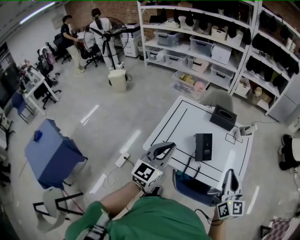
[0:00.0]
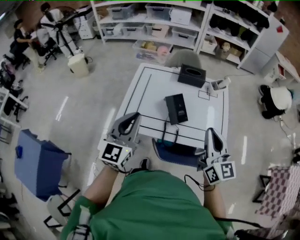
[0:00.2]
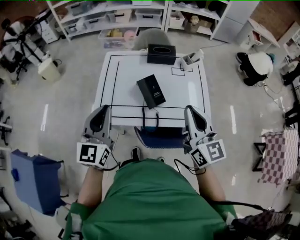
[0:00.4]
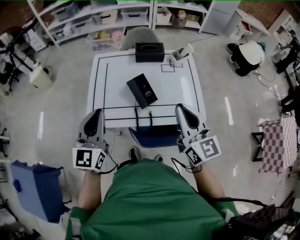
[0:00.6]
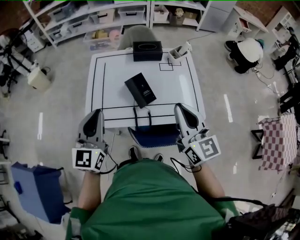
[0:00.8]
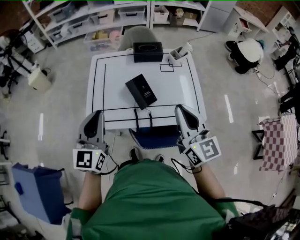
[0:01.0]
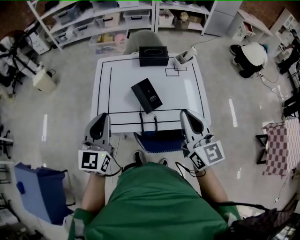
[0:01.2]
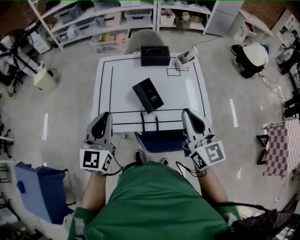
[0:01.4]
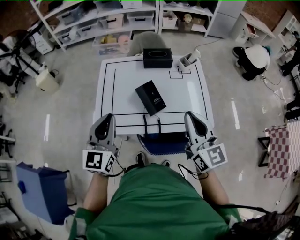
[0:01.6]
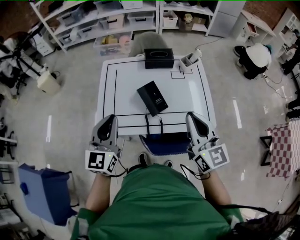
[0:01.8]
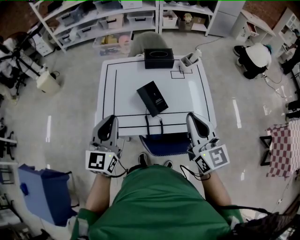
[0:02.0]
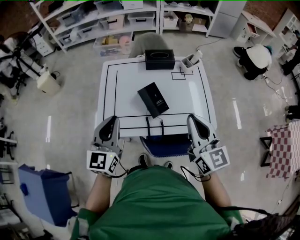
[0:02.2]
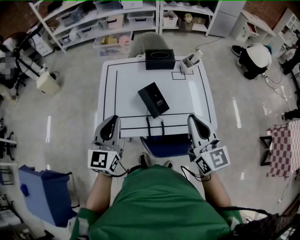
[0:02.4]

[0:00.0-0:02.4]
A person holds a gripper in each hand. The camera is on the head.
0:00.0 to 0:01.2: The left gripper ends up roughly 5 cm from where it was.
0:01.2 to 0:02.4: The grippers make only small movements.

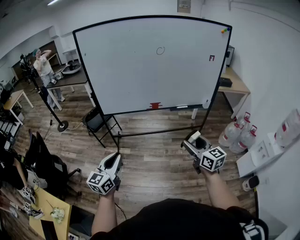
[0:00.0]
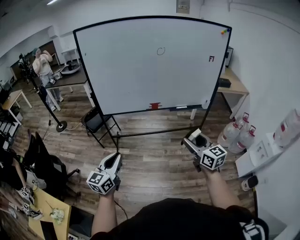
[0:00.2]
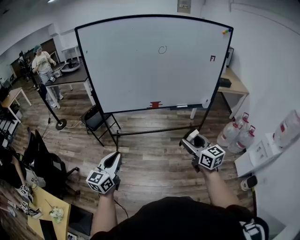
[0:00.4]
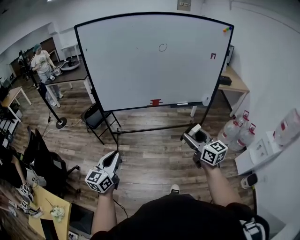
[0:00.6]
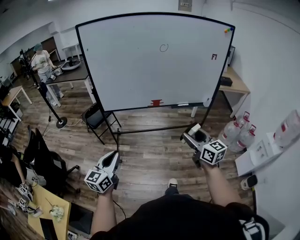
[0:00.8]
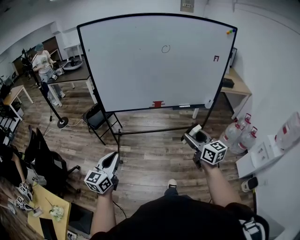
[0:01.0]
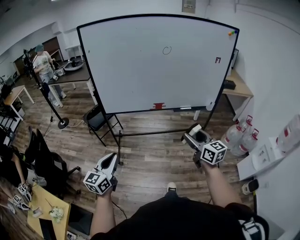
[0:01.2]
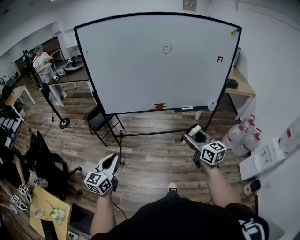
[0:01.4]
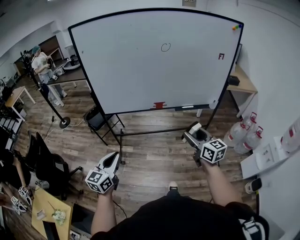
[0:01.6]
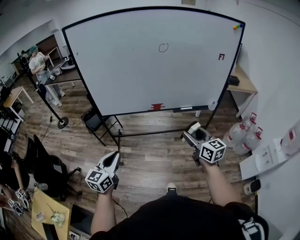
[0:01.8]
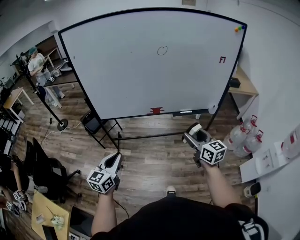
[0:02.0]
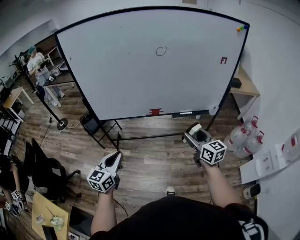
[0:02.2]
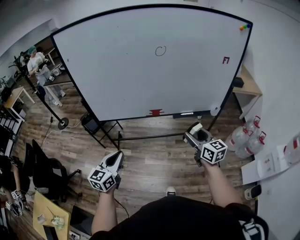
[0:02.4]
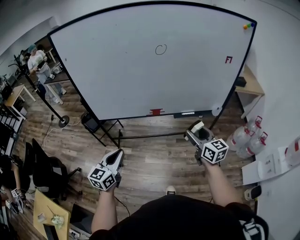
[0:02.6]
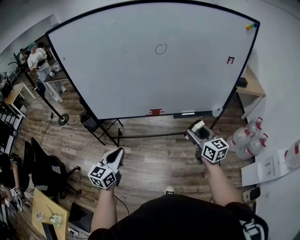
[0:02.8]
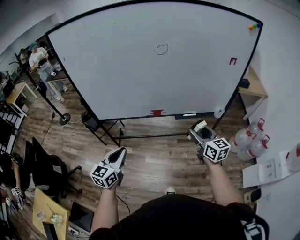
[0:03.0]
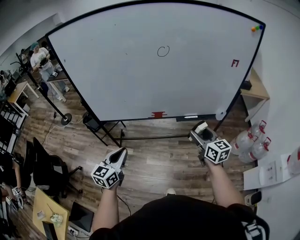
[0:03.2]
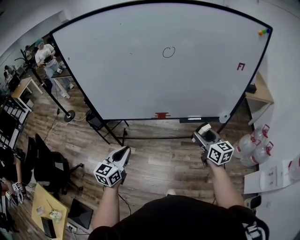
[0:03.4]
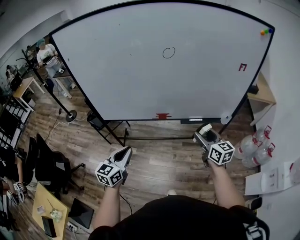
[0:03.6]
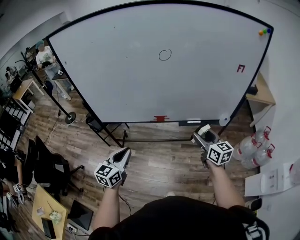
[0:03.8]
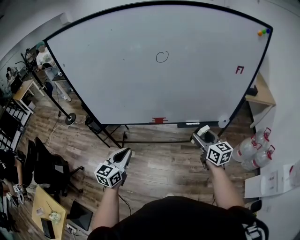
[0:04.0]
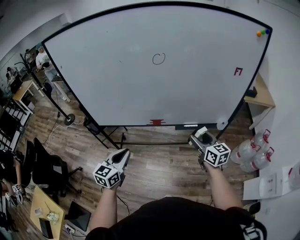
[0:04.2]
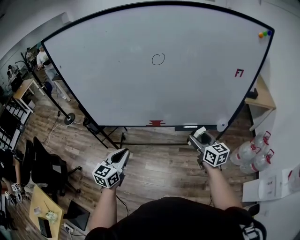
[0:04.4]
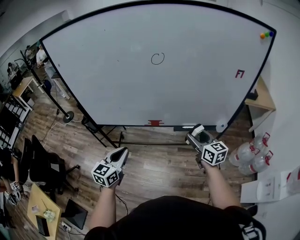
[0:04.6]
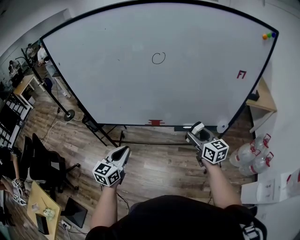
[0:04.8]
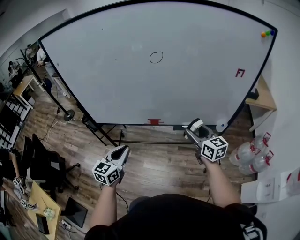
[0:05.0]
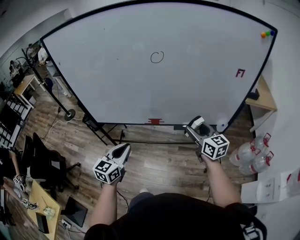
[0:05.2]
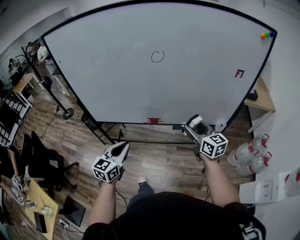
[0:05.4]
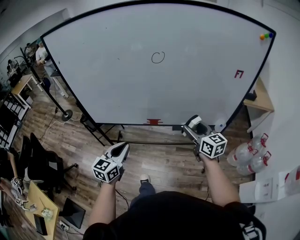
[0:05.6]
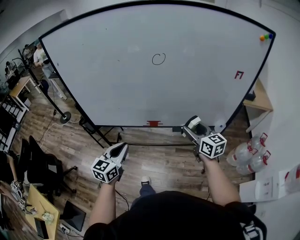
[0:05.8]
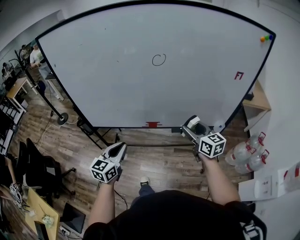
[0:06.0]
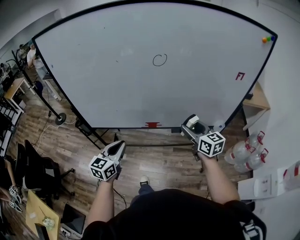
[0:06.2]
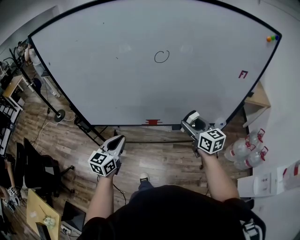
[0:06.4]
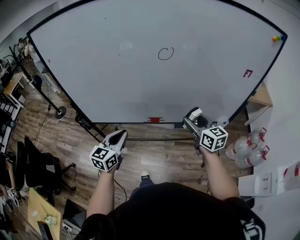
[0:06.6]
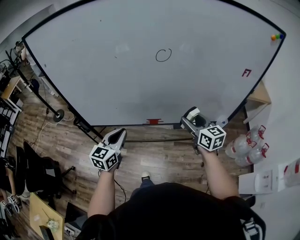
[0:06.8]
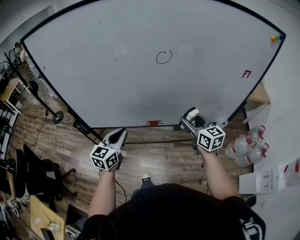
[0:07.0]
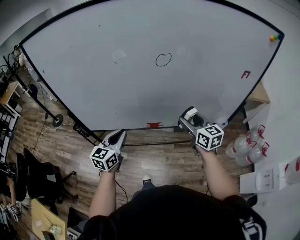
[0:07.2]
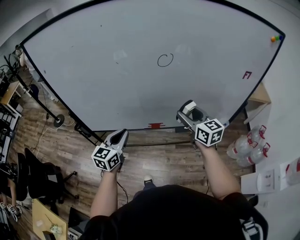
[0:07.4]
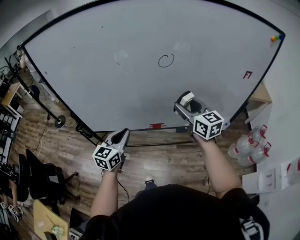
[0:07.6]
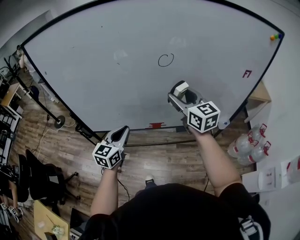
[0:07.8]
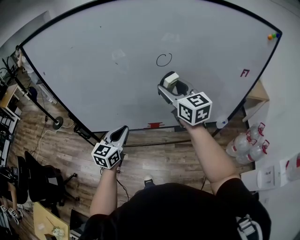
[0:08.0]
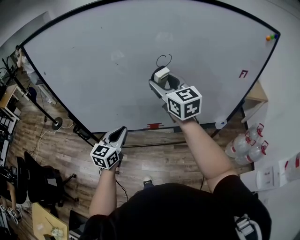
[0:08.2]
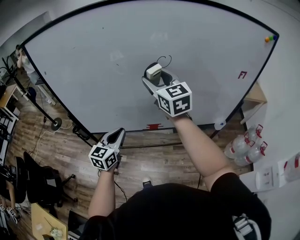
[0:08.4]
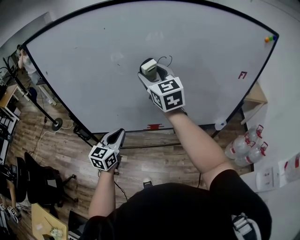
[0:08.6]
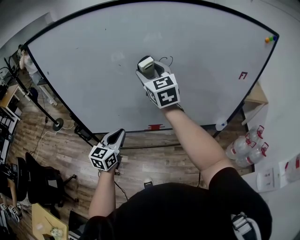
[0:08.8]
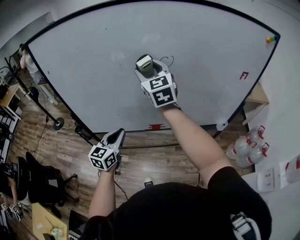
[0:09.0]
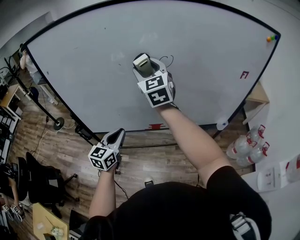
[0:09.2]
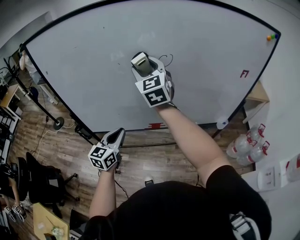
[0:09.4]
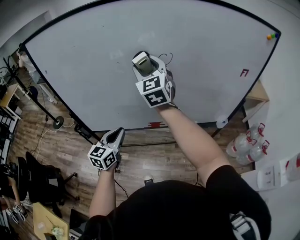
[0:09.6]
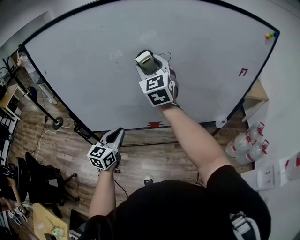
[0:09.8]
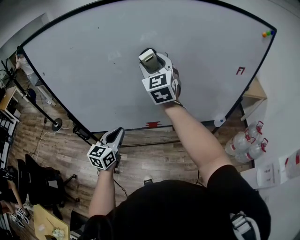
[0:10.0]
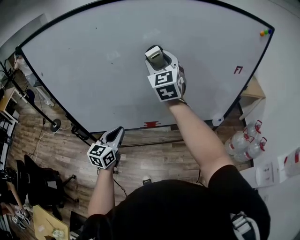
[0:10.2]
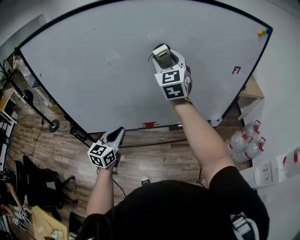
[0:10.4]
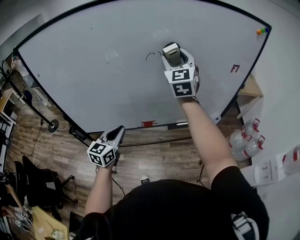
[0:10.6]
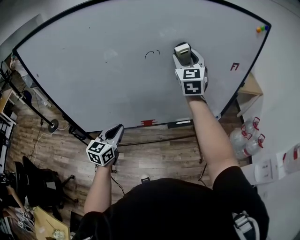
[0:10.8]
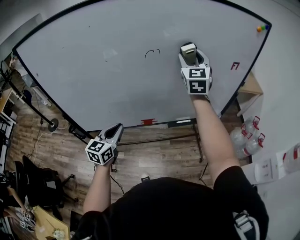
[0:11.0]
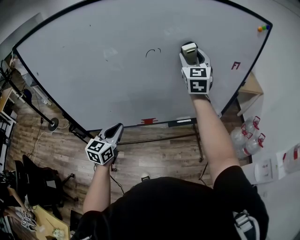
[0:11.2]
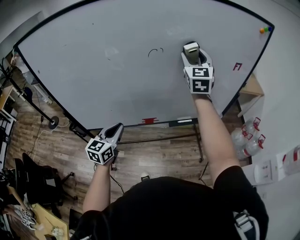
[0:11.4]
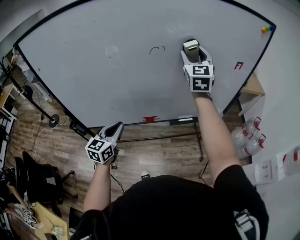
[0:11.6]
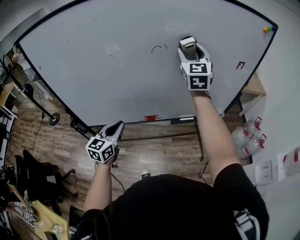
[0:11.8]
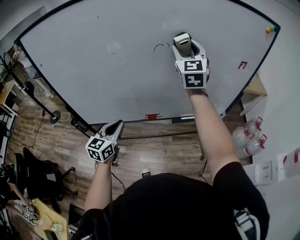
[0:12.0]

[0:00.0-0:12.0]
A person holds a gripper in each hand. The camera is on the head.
0:00.0 to 0:01.6: The right gripper moves forward, roughly 10 cm; the left gripper moves forward, some 5 cm.
0:01.6 to 0:03.0: Both grippers move forward and to the right, roughly 20 cm.
0:03.0 to 0:04.4: The left gripper goes roughly 10 cm forward and to the right. The right gripper heads forward, covering about 10 cm.
0:04.4 to 0:06.0: Both grippers move forward, roughly 5 cm.
0:06.0 to 0:07.6: The right gripper shifts approximately 15 cm forward, to the left and upward, while the left gripper heads forward, covering about 10 cm.
0:07.6 to 0:09.0: The right gripper is displaced to the left, upward and forward by roughly 20 cm, and rotates approximately 20 degrees.
0:09.0 to 0:10.4: The right gripper travels to the right by some 10 cm.

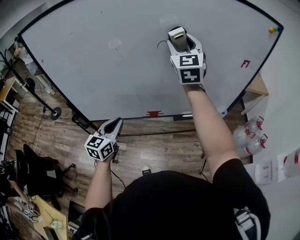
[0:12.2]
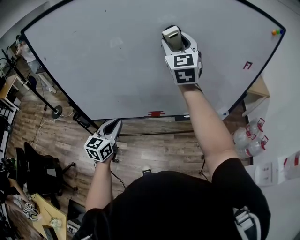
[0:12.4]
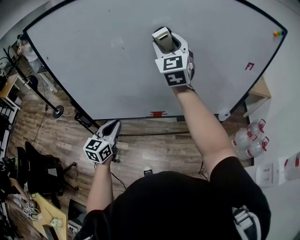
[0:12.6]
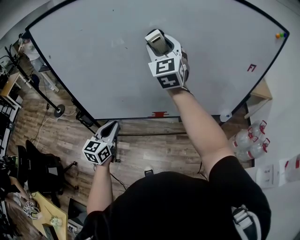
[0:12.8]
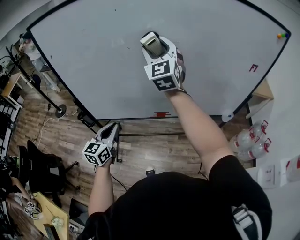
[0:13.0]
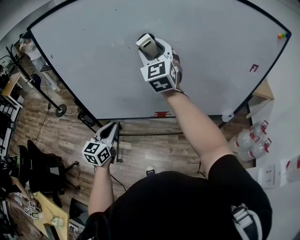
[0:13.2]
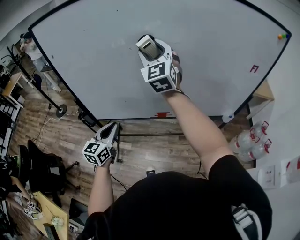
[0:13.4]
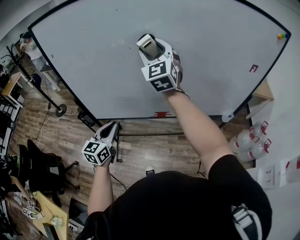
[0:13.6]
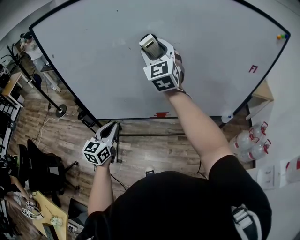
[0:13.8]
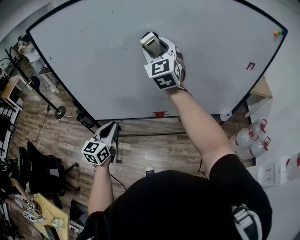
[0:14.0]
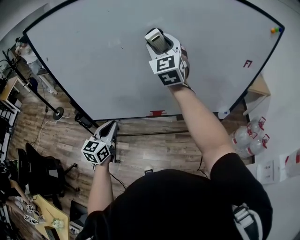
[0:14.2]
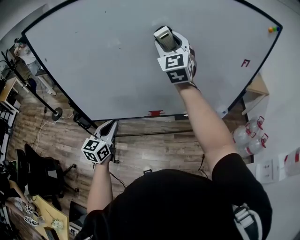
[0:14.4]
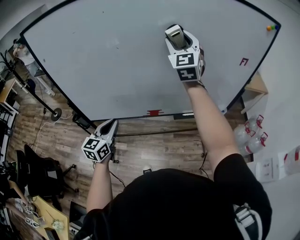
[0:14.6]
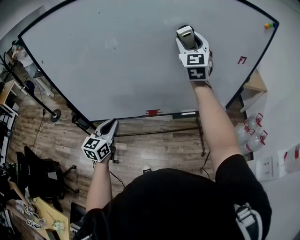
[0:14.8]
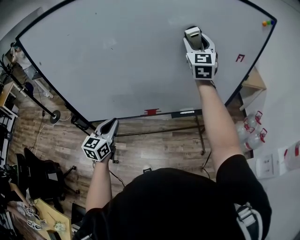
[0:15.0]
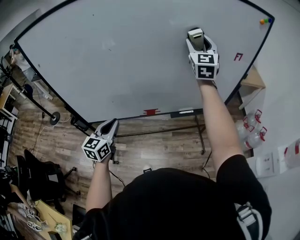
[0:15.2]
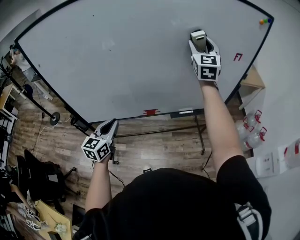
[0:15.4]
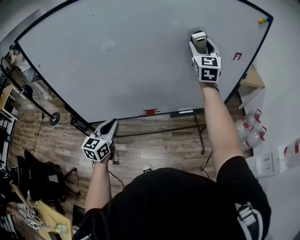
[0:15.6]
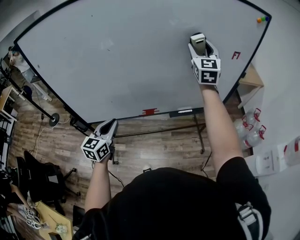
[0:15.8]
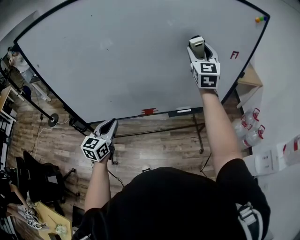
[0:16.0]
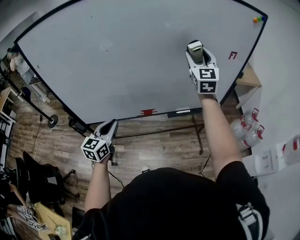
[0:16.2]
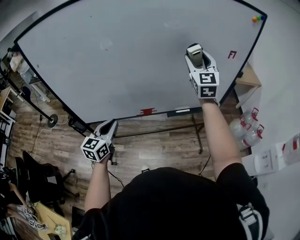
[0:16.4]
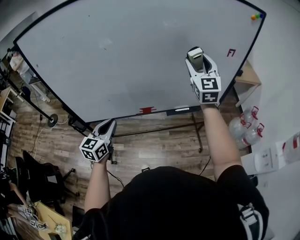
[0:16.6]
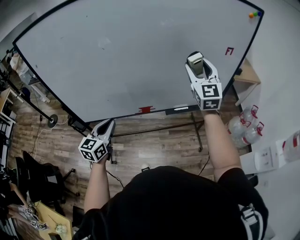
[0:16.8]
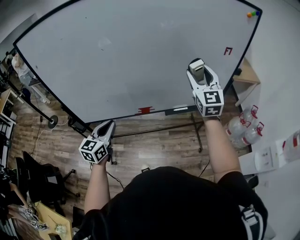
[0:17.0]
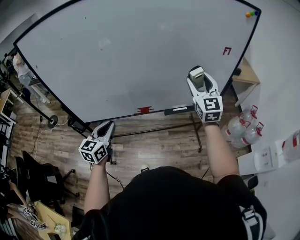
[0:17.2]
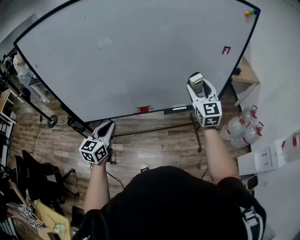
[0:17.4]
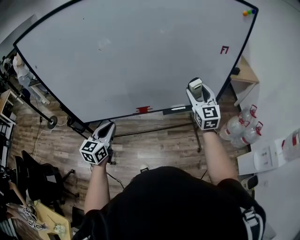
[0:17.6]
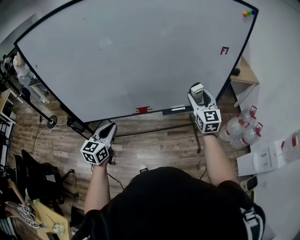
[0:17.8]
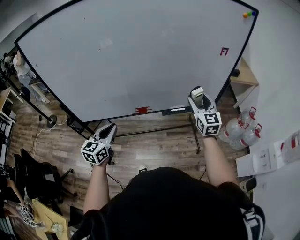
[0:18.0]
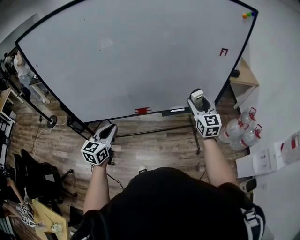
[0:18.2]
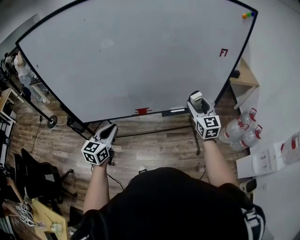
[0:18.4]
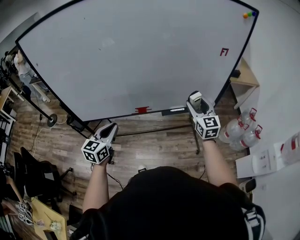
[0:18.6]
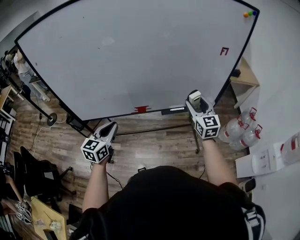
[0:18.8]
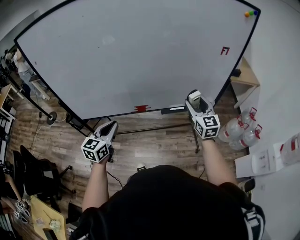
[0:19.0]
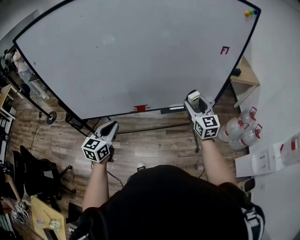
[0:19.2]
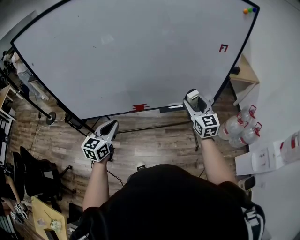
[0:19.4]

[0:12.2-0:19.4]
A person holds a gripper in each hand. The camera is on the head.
0:12.2 to 0:13.6: The left gripper is displaced to the left by roughly 5 cm. Meanwhile the right gripper travels to the left by some 15 cm.
0:13.6 to 0:15.0: The right gripper is displaced to the right by about 25 cm, and turns by approximately 20 degrees, while the left gripper travels to the right by approximately 5 cm.
0:15.0 to 0:16.6: The right gripper travels backward, downward and to the right by approximately 10 cm.
0:16.6 to 0:18.0: The right gripper travels downward, backward and to the right by some 20 cm.
0:18.0 to 0:19.4: The grippers make only small movements.

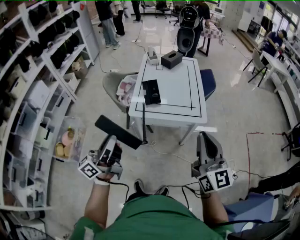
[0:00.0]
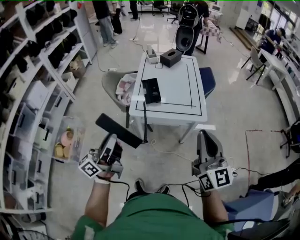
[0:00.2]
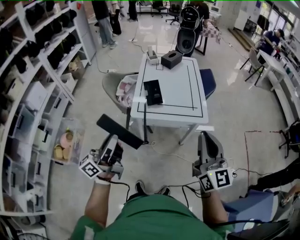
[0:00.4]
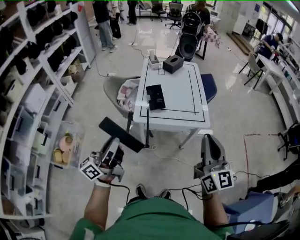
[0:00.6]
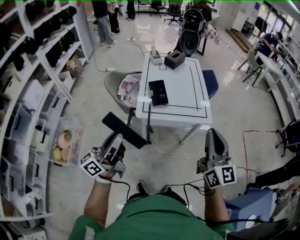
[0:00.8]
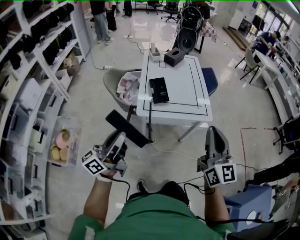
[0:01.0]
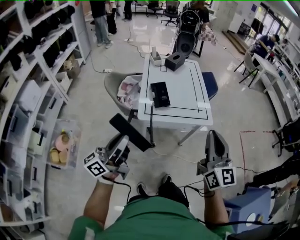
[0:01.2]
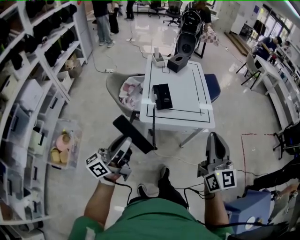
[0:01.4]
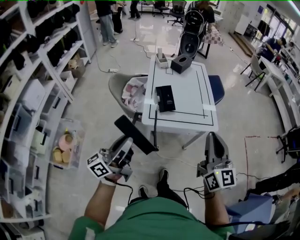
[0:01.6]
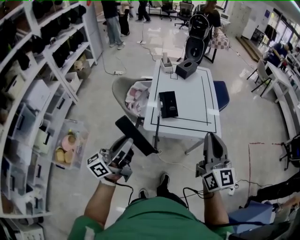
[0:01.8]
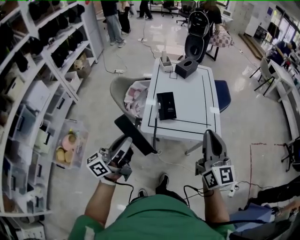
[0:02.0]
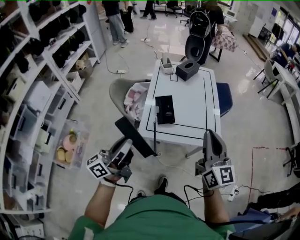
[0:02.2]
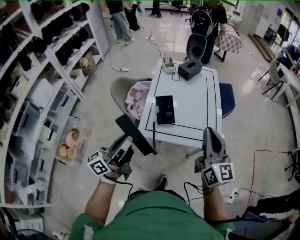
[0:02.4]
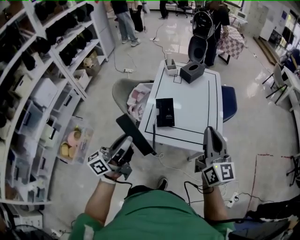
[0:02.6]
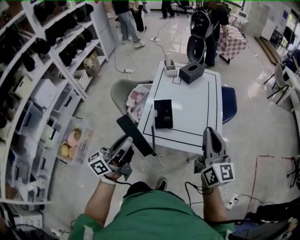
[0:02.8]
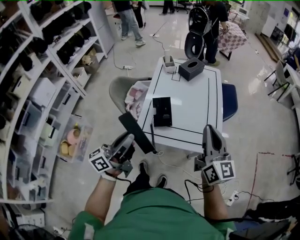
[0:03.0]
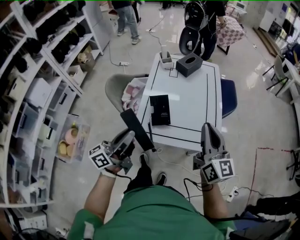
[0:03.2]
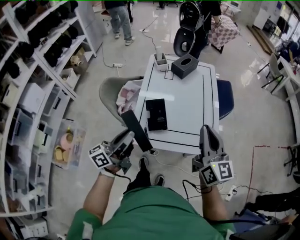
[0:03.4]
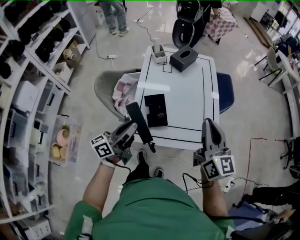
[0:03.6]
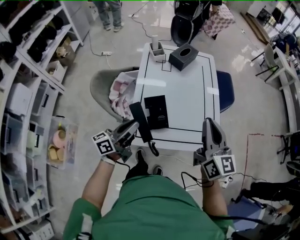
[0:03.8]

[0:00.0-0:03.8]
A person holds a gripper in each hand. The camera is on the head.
0:00.0 to 0:01.2: Both grippers move to the left, about 10 cm.
0:01.2 to 0:02.6: The right gripper moves forward, roughly 25 cm. The left gripper shifts some 20 cm forward and to the right.
0:02.6 to 0:03.8: The left gripper is displaced forward and downward by approximately 25 cm; the right gripper goes approximately 15 cm forward.
